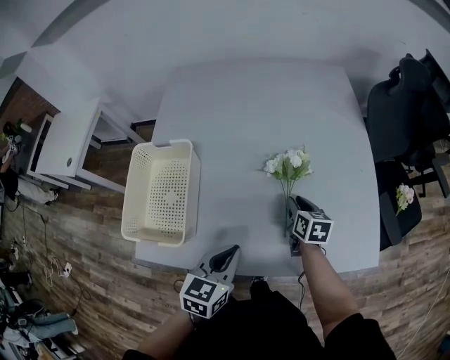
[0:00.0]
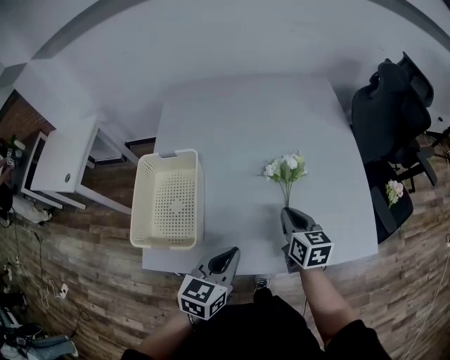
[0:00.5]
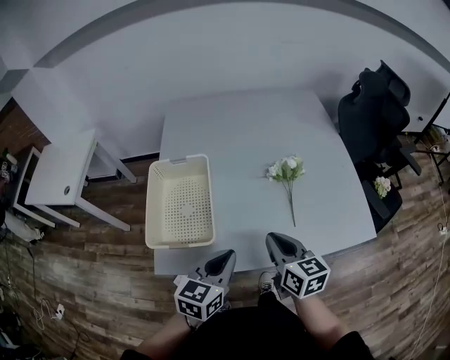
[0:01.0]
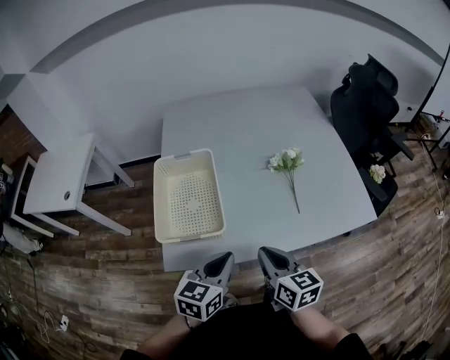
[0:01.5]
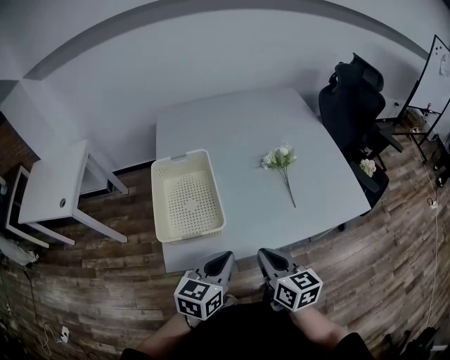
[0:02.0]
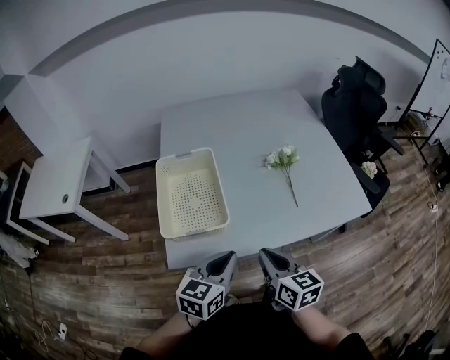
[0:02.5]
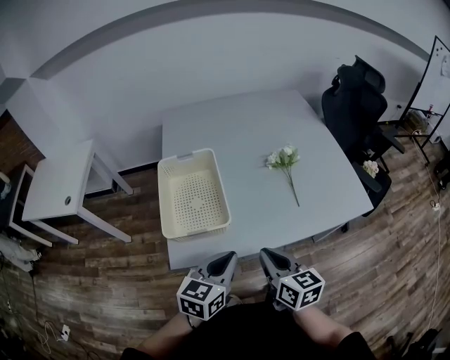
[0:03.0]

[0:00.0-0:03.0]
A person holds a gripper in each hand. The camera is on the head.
0:00.0 to 0:01.5: The right gripper shifts roughly 40 cm backward, to the left and upward, and closes its fingers. Meanwhile the left gripper travels to the left and backward by roughly 20 cm.
0:01.5 to 0:03.0: The grippers stay close to where they were, moving slightly.

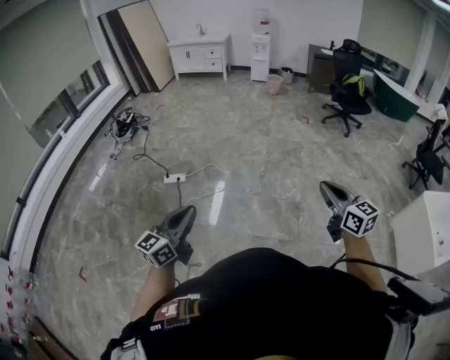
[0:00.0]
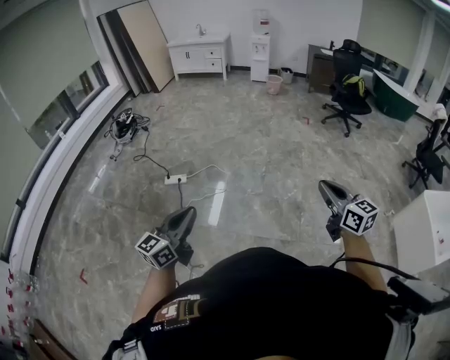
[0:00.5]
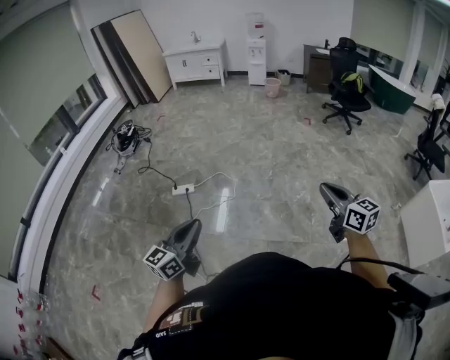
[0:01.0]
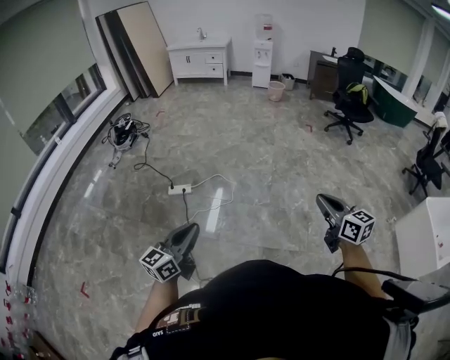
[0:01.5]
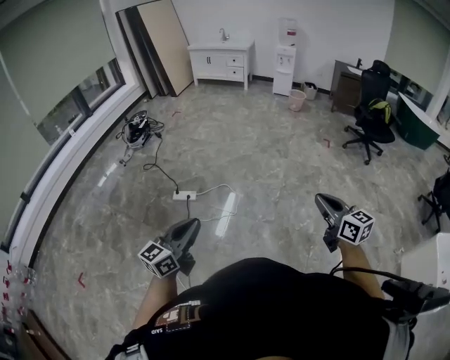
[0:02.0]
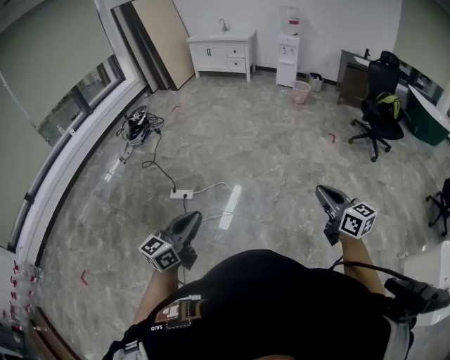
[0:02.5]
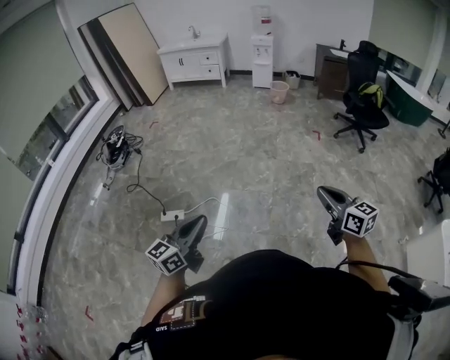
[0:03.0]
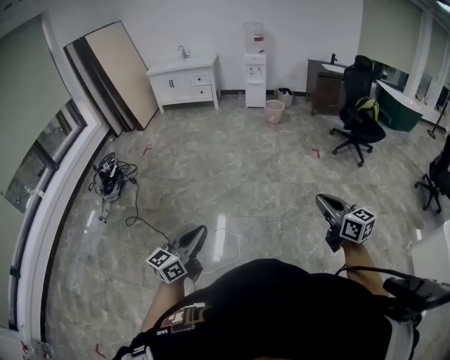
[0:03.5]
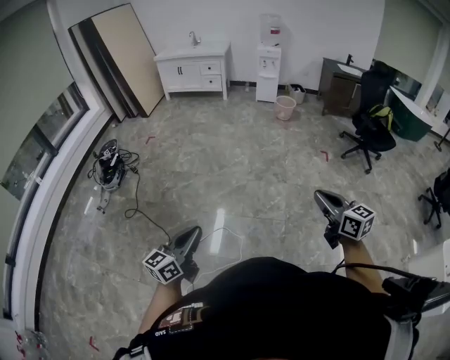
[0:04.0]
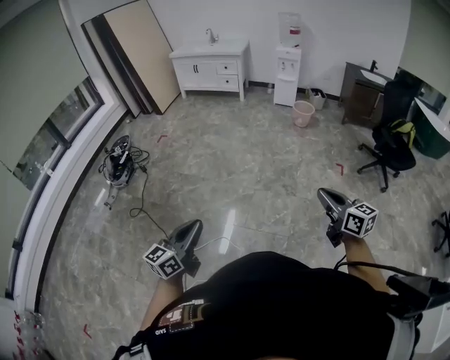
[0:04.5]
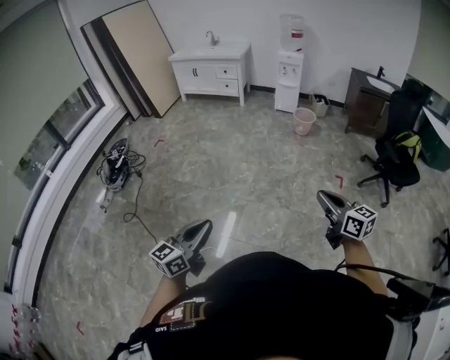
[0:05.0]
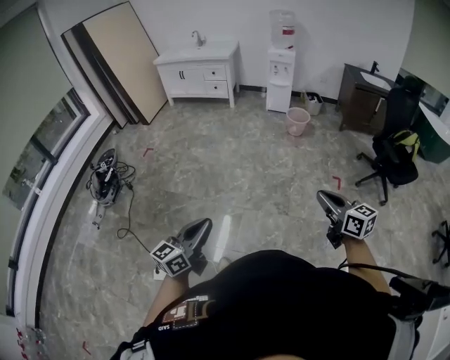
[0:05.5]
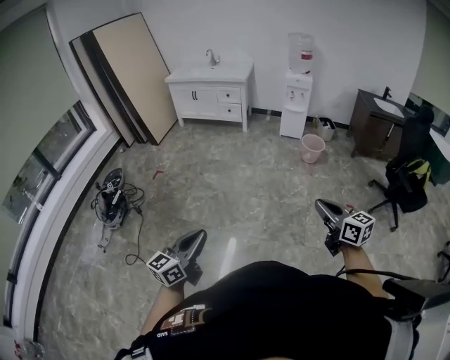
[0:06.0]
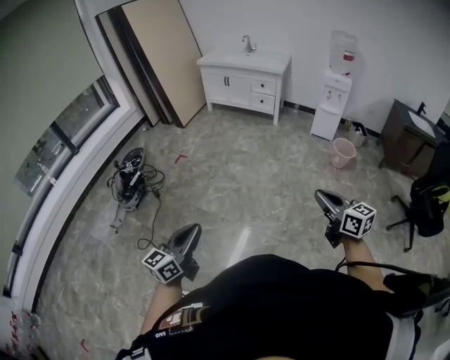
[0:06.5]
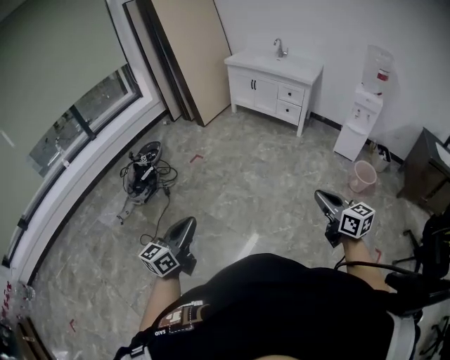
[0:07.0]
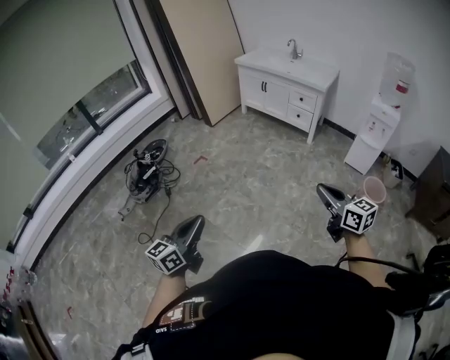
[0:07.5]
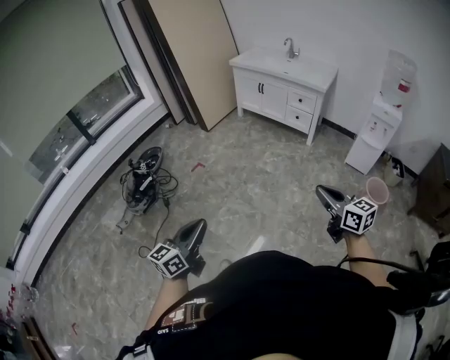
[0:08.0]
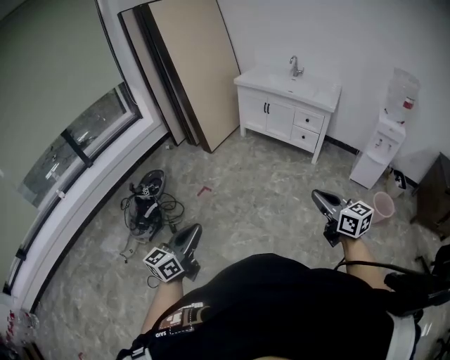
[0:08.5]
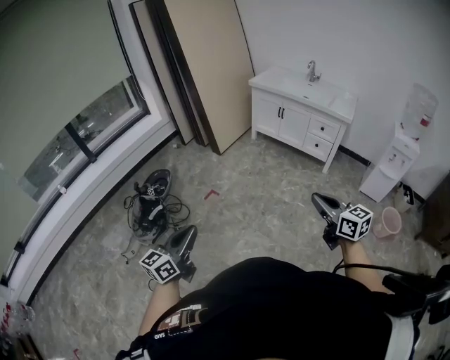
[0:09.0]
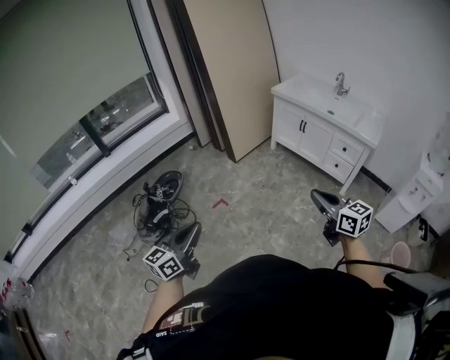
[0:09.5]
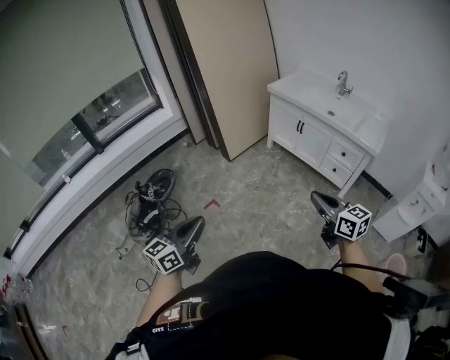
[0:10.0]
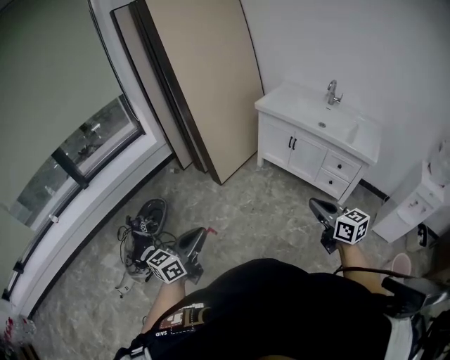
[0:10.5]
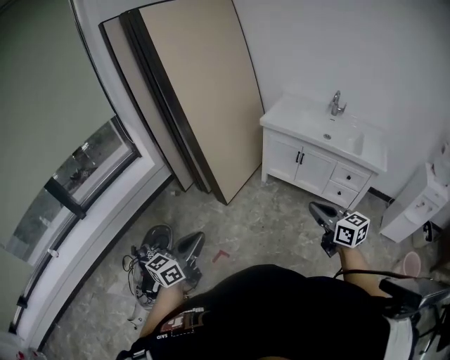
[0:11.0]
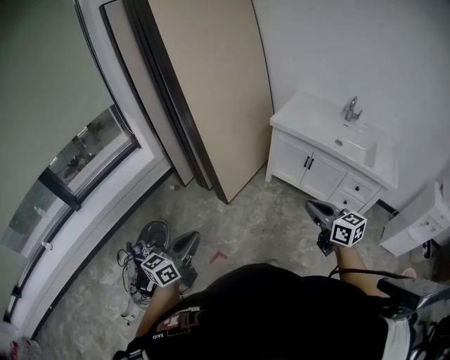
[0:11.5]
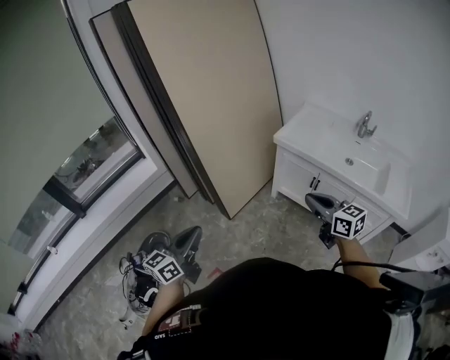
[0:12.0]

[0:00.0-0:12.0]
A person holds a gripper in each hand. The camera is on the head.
0:00.0 to 0:02.0: Both grippers travel together forward, roughly 20 cm.
0:02.0 to 0:04.0: Both grippers are carried forward, some 50 cm.
0:04.0 to 0:06.0: Both grippers are carried forward, approximately 50 cm.
0:06.0 to 0:08.0: The two grippers travel together, approximately 50 cm. The left gripper rotates some 30 degrees. The right gripper swivels roughly 20 degrees.
0:08.0 to 0:10.0: Both grippers are carried forward, about 50 cm.
0:10.0 to 0:12.0: Both grippers are carried forward, approximately 60 cm.

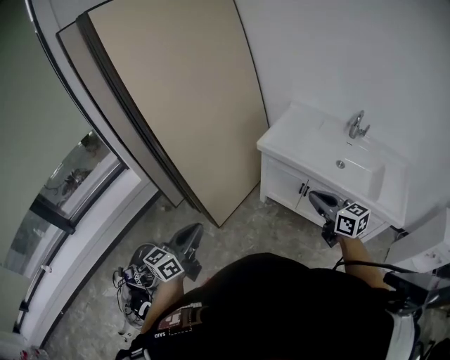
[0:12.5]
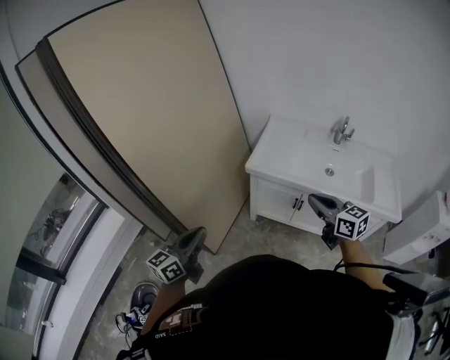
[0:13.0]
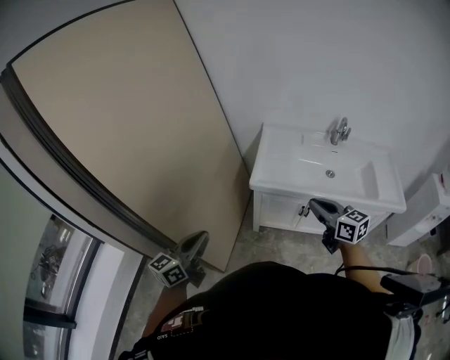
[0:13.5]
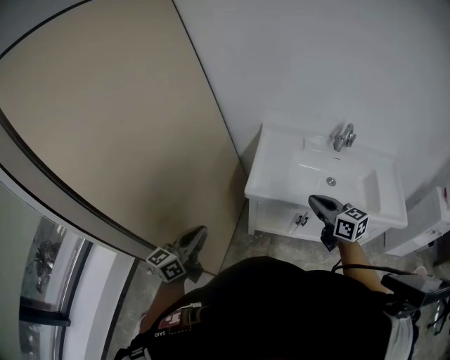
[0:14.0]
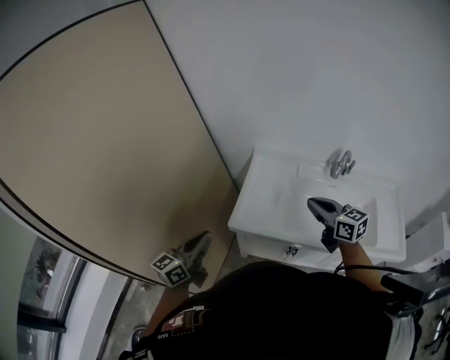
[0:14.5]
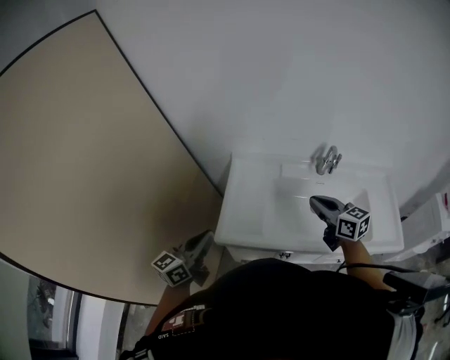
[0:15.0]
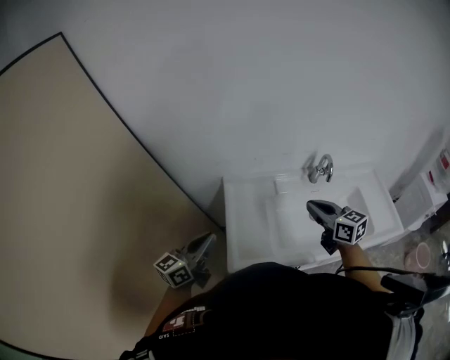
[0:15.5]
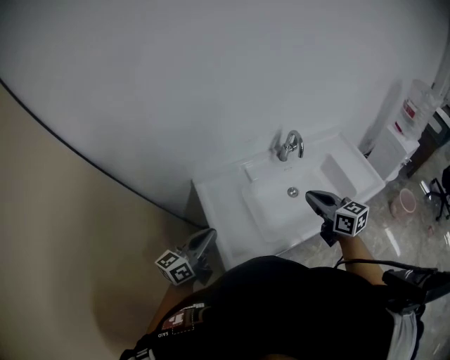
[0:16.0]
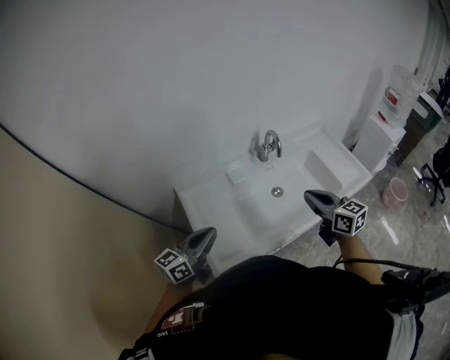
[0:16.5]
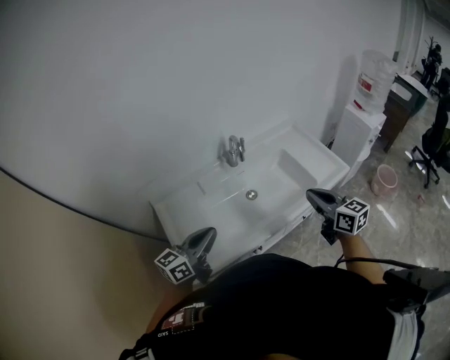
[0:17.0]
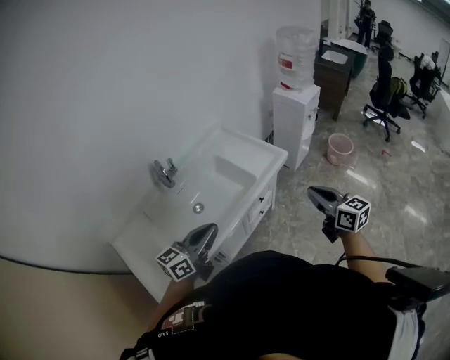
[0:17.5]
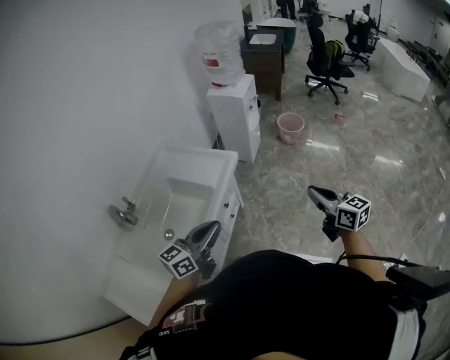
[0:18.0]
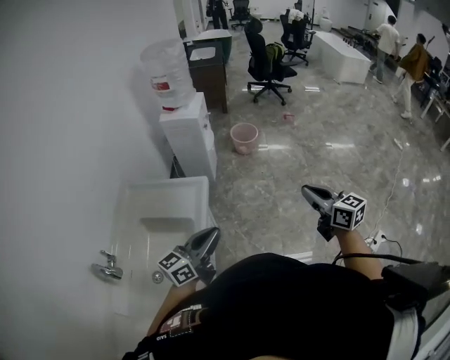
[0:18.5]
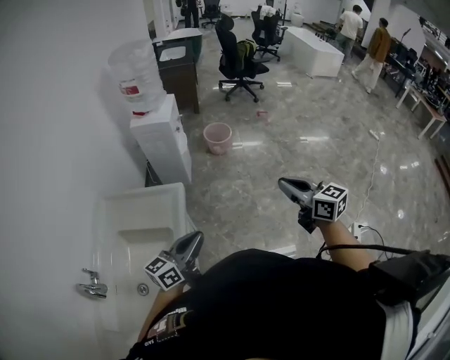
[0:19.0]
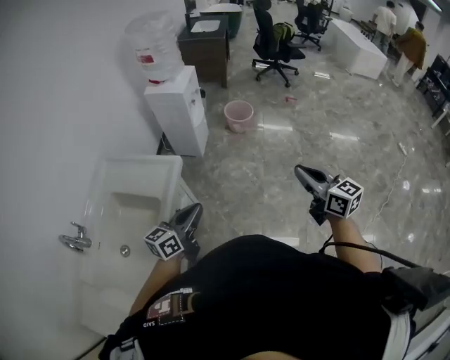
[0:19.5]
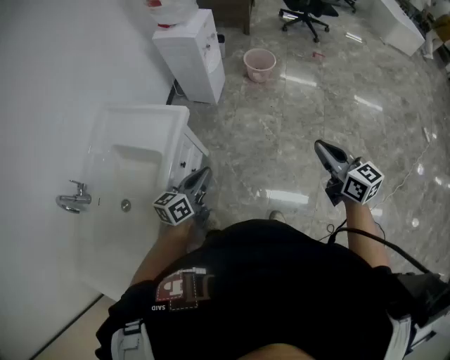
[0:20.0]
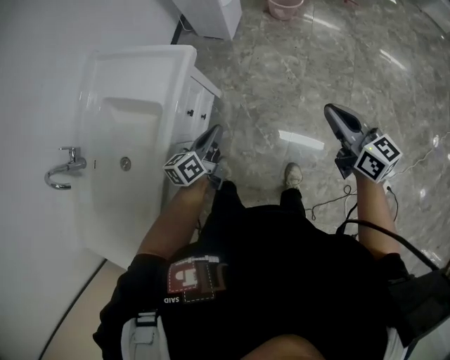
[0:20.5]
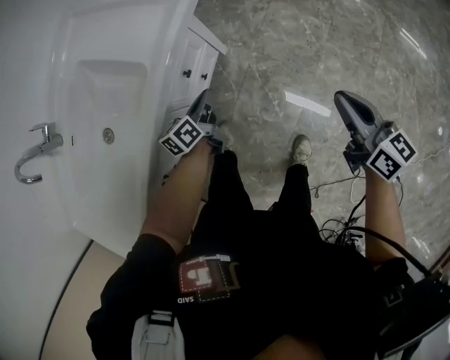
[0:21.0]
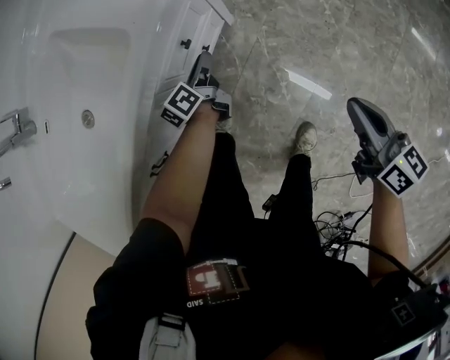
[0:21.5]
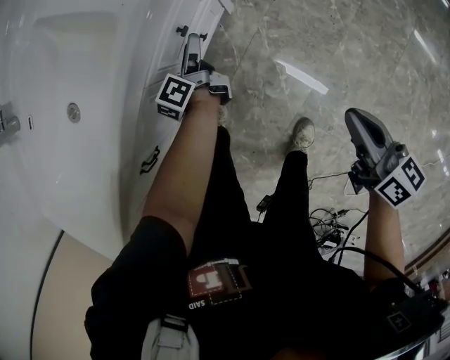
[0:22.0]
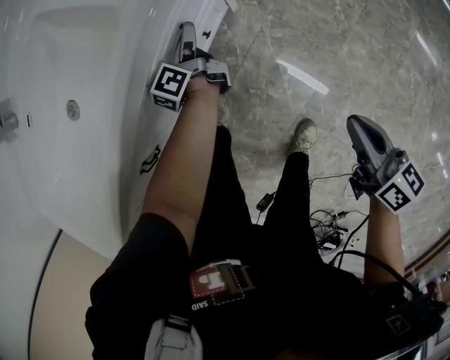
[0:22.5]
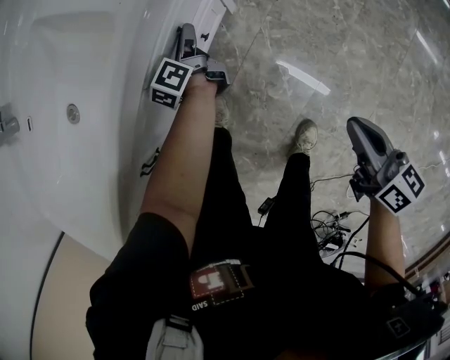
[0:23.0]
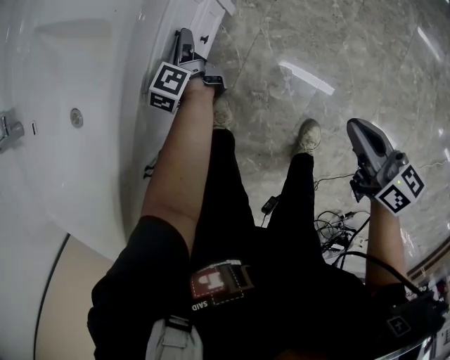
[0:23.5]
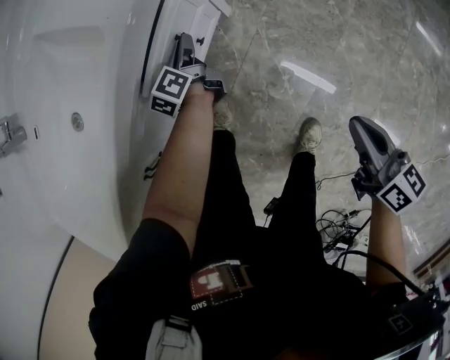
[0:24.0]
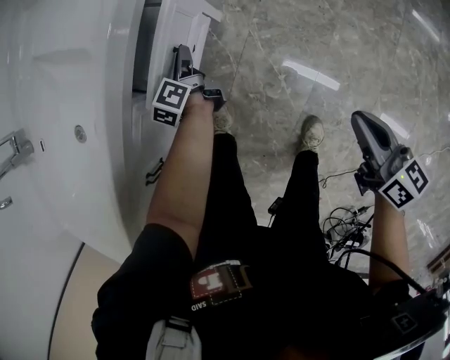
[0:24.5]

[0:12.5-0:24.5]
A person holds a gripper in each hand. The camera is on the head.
0:12.5 to 0:14.5: Both grippers move forward, approximately 40 cm. The left gripper changes its angle by about 20 degrees.
0:14.5 to 0:16.5: The left gripper ends up approximately 25 cm from where it was, and changes its angle by some 50 degrees. Meanwhile the right gripper moves roughly 10 cm, and swivels some 40 degrees.
0:16.5 to 0:18.5: The pair of grippers is taken some 60 cm. The right gripper turns by some 60 degrees; the left gripper changes its angle by approximately 70 degrees.
0:18.5 to 0:20.5: The left gripper moves downward, approximately 30 cm, and rotates about 40 degrees, while the right gripper is displaced downward, forward and to the right by roughly 20 cm.
0:20.5 to 0:22.5: Both grippers move downward, about 25 cm. The right gripper turns by roughly 20 degrees. The left gripper turns by about 50 degrees, and opens its fingers.
0:22.5 to 0:24.5: The left gripper changes place by some 5 cm, and closes its fingers. Meanwhile the right gripper shifts about 10 cm to the right and backward.
